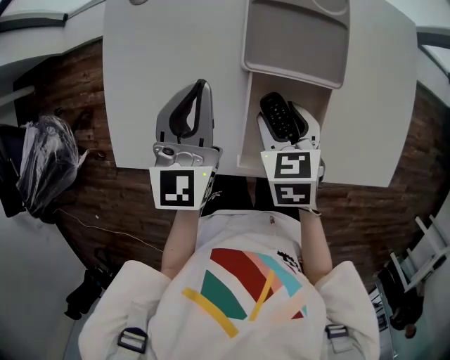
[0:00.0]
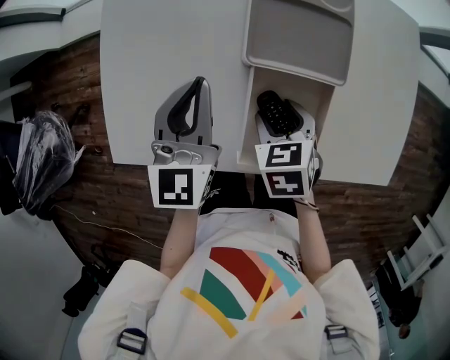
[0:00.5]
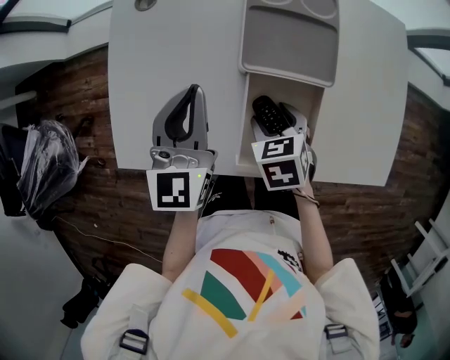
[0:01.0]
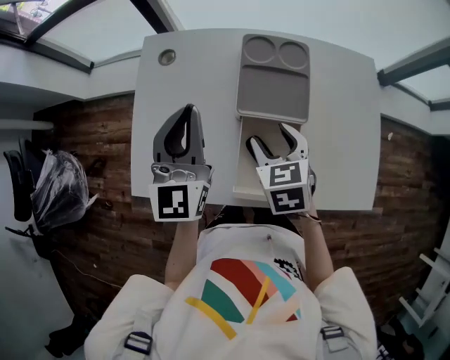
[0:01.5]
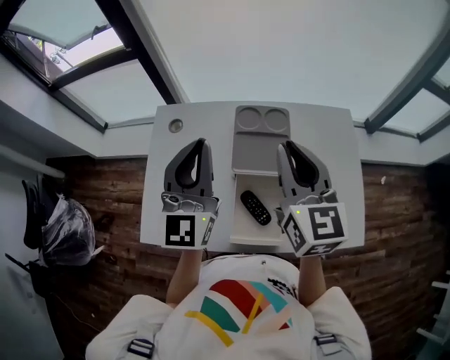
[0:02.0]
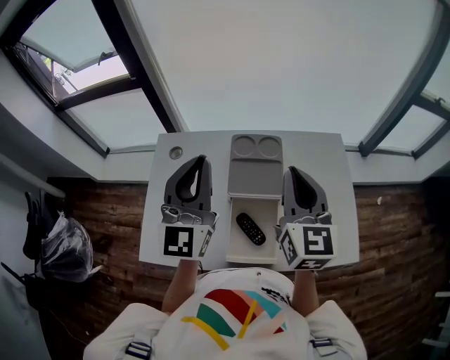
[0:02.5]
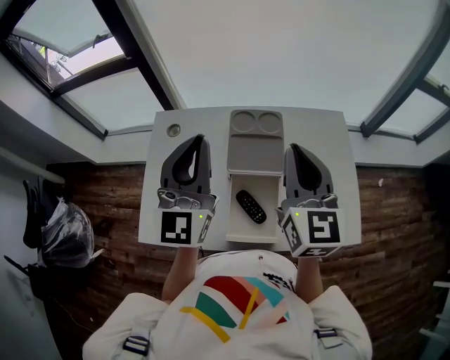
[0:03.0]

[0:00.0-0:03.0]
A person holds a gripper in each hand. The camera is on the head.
0:00.0 to 0:01.5: Both grippers travel together upward, about 10 cm.
0:01.5 to 0:03.0: The left gripper moves upward and to the right, roughly 15 cm. The right gripper heads upward, covering approximately 25 cm, tips its fingers upward by some 40 degrees, and closes up.

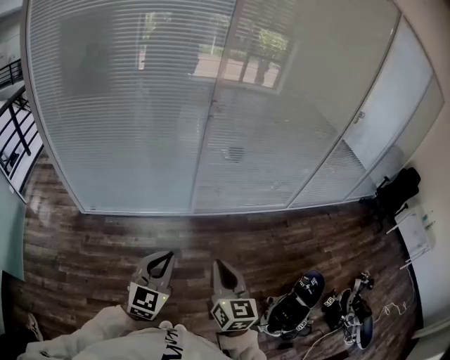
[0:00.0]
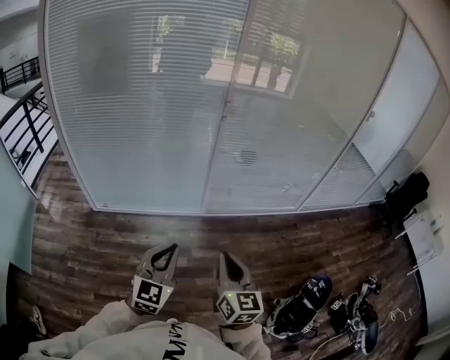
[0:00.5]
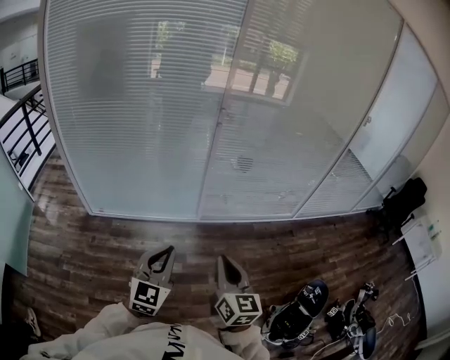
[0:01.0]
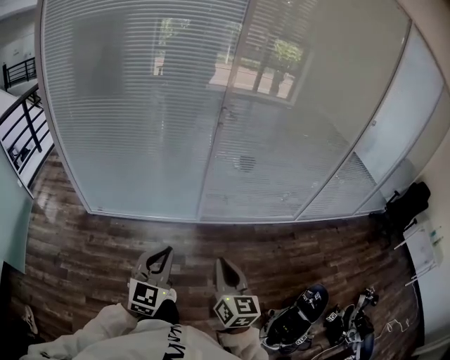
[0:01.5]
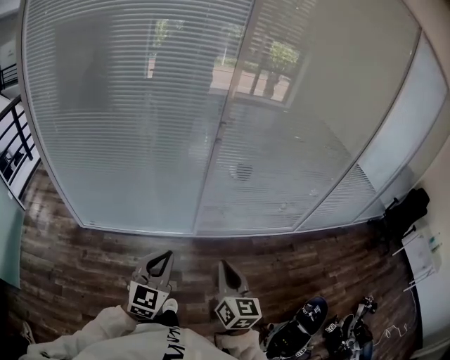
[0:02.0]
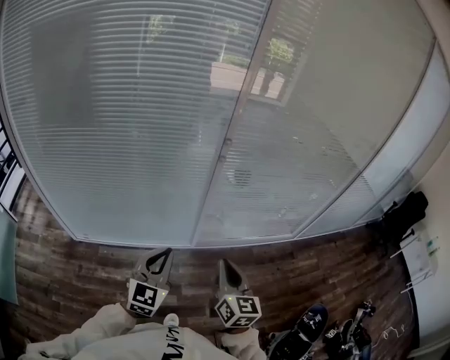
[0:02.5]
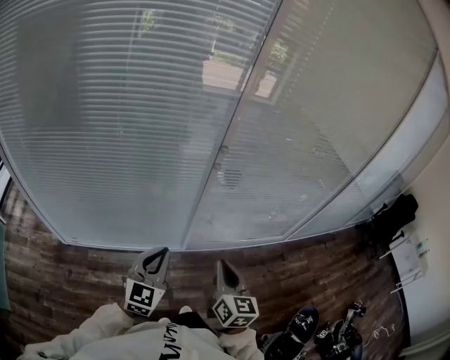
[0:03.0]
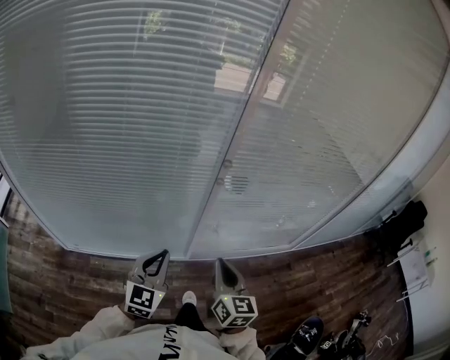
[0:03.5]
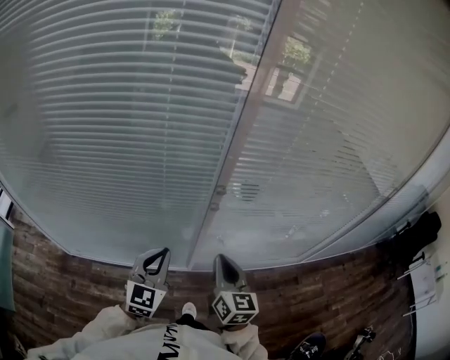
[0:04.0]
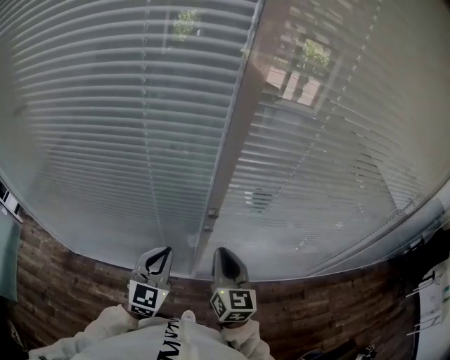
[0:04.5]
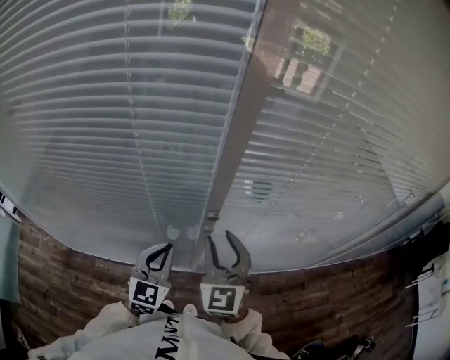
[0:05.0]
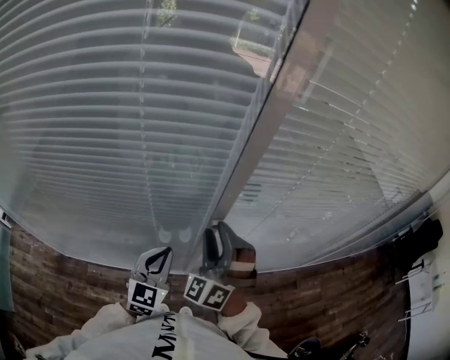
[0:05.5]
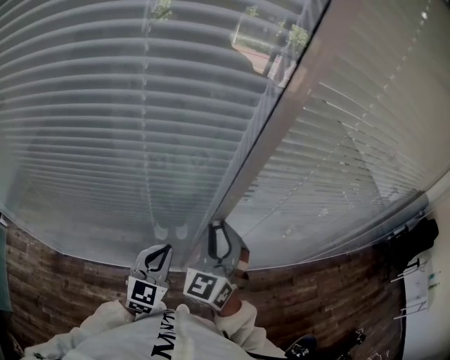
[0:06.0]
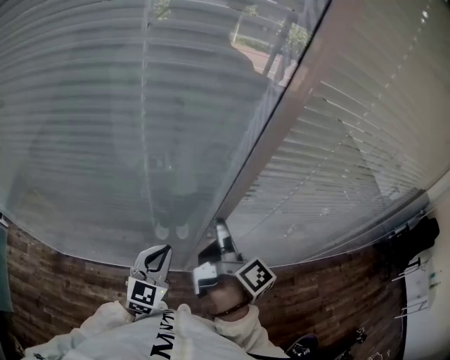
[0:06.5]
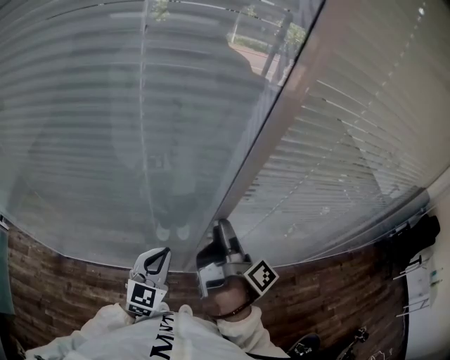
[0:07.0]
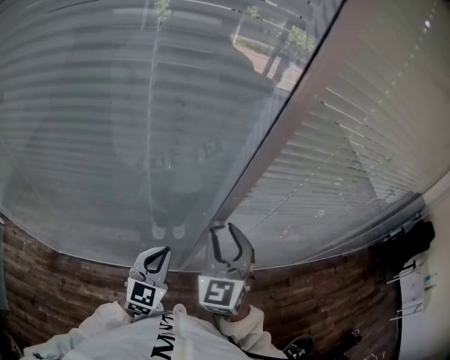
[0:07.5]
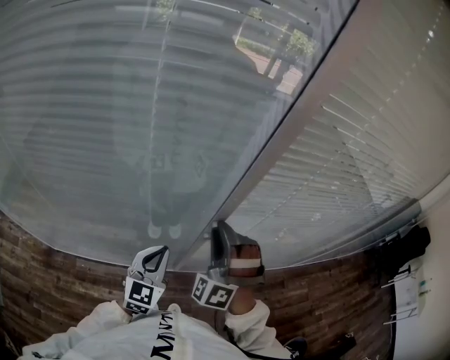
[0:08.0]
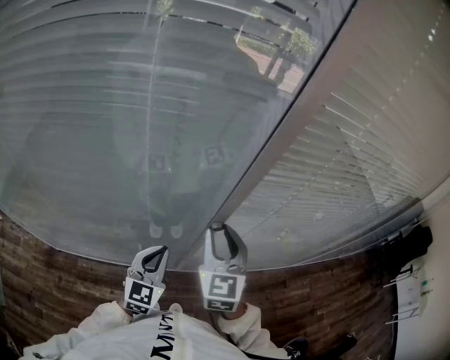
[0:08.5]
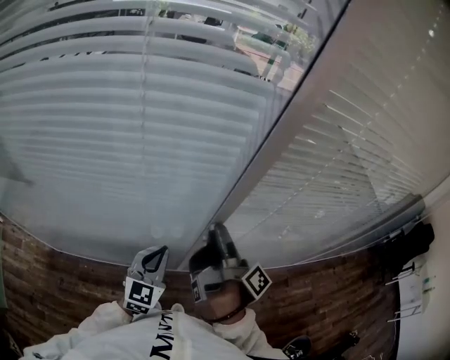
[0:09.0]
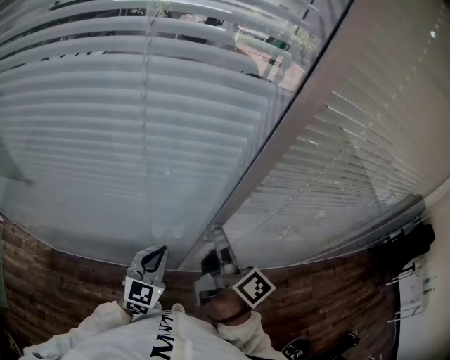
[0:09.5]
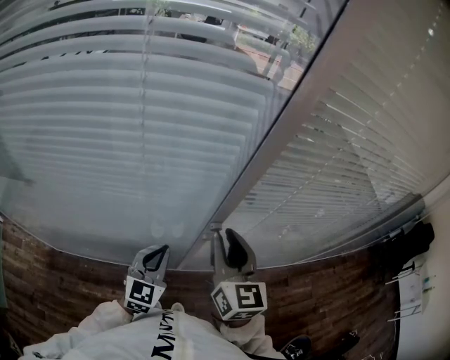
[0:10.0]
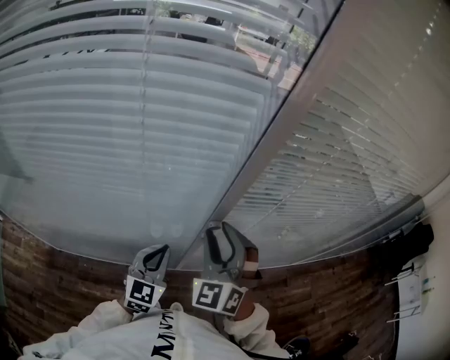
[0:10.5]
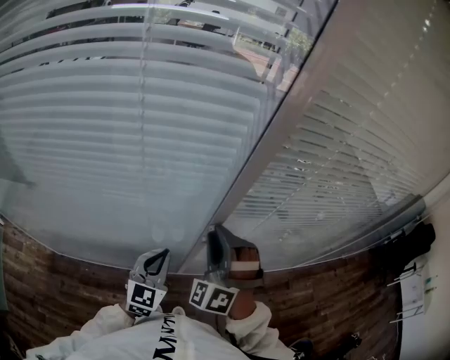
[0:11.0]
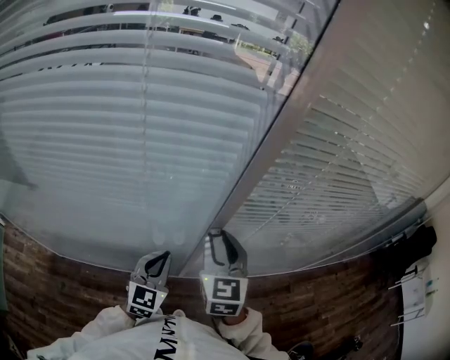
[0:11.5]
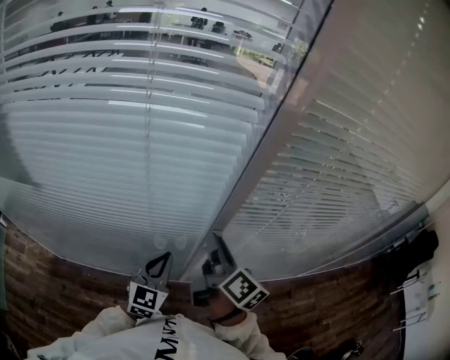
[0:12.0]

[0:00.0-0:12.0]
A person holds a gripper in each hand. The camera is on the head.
0:00.0 to 0:02.0: Both grippers travel together forward, some 15 cm.
0:02.0 to 0:04.0: The two grippers go about 35 cm forward.
0:04.0 to 0:06.0: The right gripper moves forward and upward, some 15 cm, twists some 50 degrees counterclockwise, seen from behind, and opens. The left gripper travels forward by about 10 cm.
0:06.0 to 0:08.0: The right gripper rotates around the line of its fingers by roughly 40 degrees, counterclockwise from behind.
0:08.0 to 0:10.0: The right gripper twists some 80 degrees clockwise, seen from behind.
0:10.0 to 0:12.0: The right gripper twists roughly 50 degrees clockwise, seen from behind.

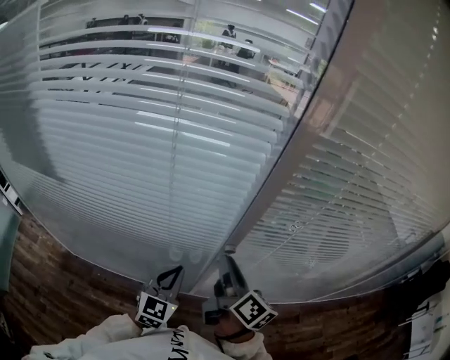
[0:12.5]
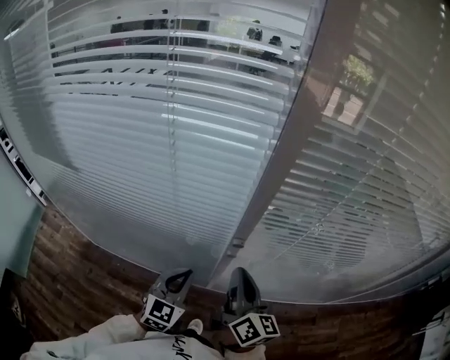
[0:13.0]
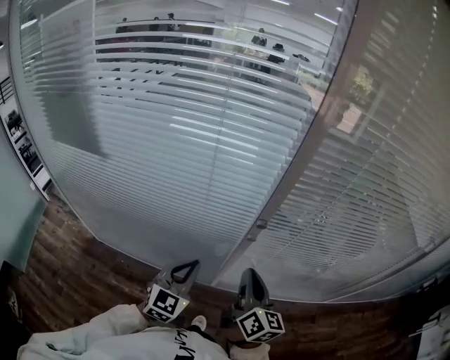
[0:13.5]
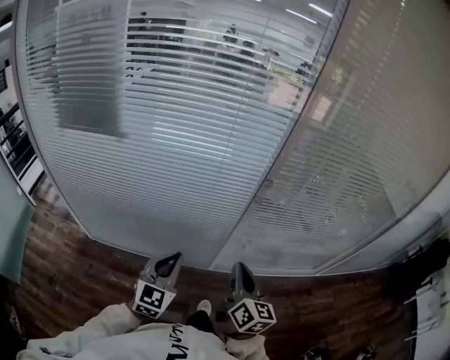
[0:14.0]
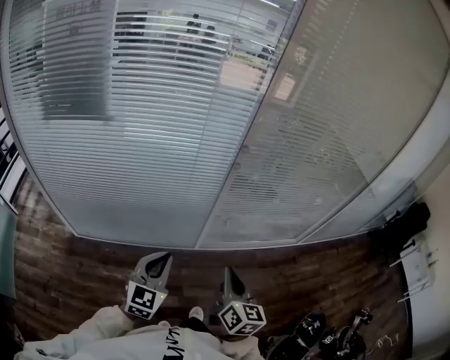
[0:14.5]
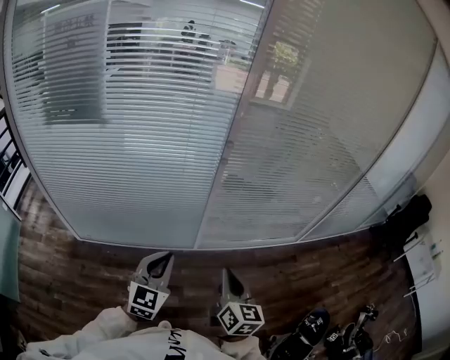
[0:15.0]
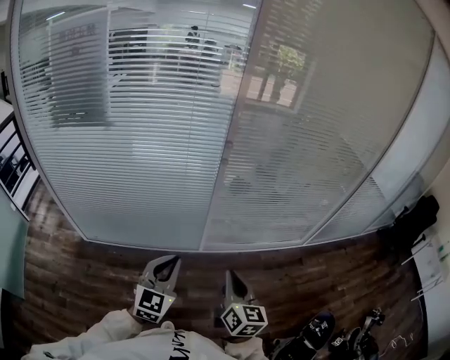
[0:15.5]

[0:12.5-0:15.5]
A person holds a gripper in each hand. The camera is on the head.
0:12.5 to 0:14.0: The right gripper is displaced backward by about 20 cm, turns by roughly 30 degrees, and closes. Meanwhile the left gripper travels backward and to the left by about 20 cm.
0:14.0 to 0:15.5: The left gripper heads backward and to the right, covering roughly 15 cm. Meanwhile the right gripper shifts approximately 15 cm backward.

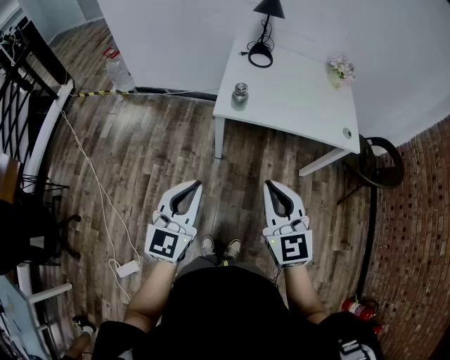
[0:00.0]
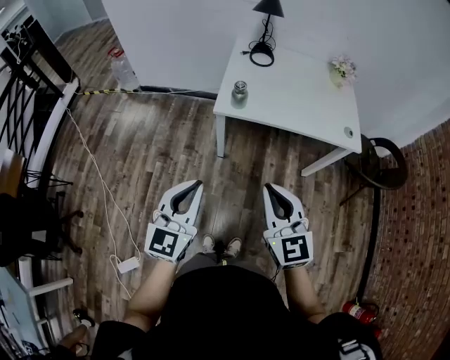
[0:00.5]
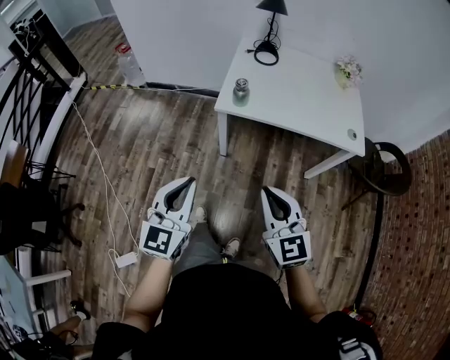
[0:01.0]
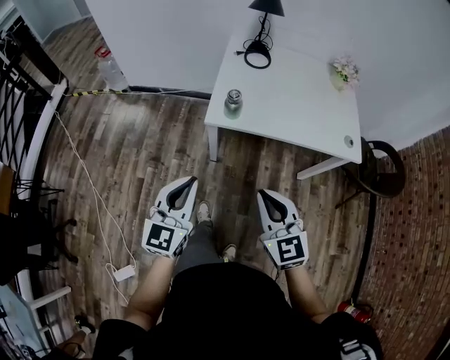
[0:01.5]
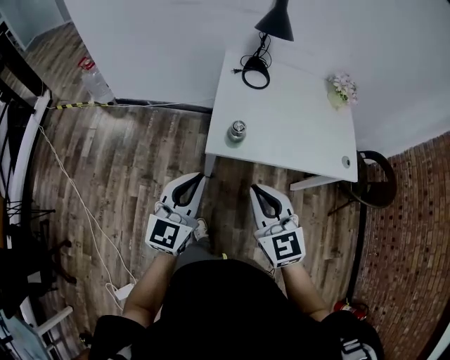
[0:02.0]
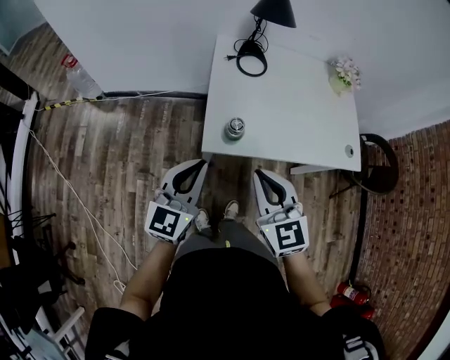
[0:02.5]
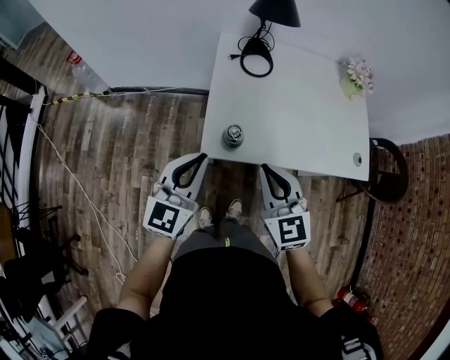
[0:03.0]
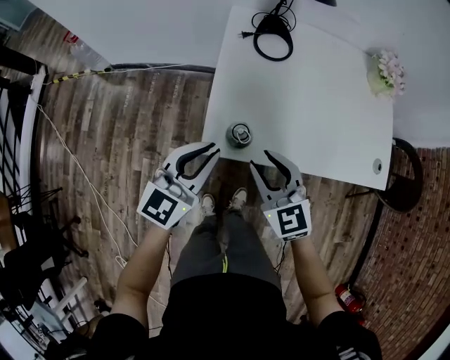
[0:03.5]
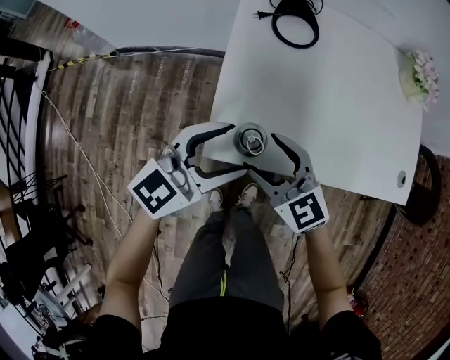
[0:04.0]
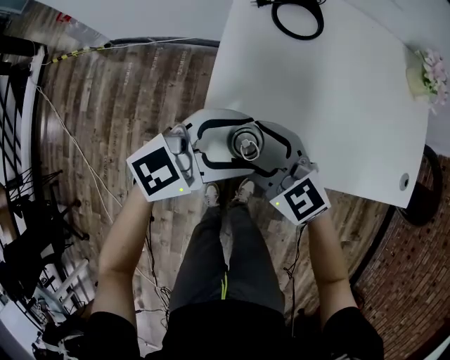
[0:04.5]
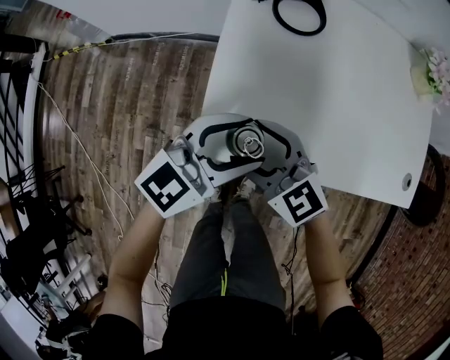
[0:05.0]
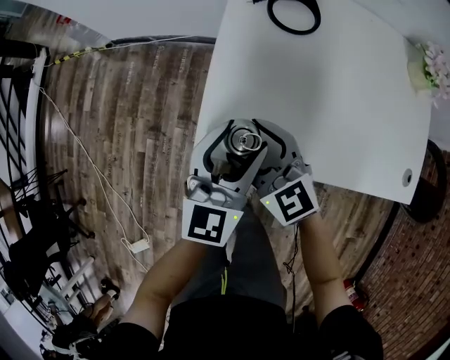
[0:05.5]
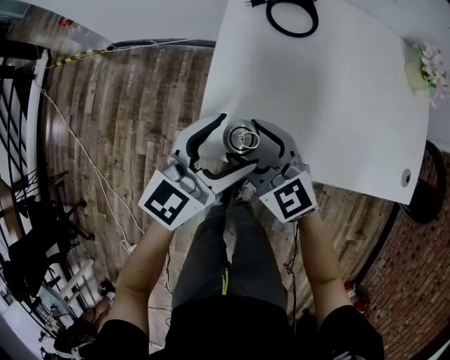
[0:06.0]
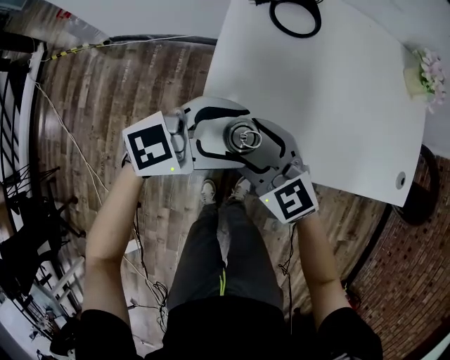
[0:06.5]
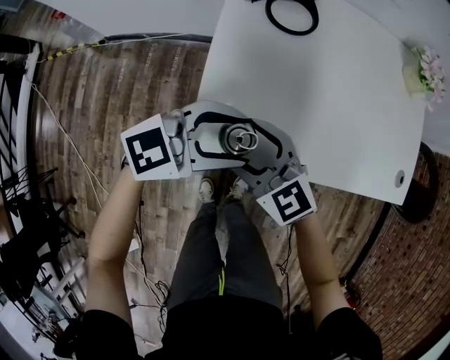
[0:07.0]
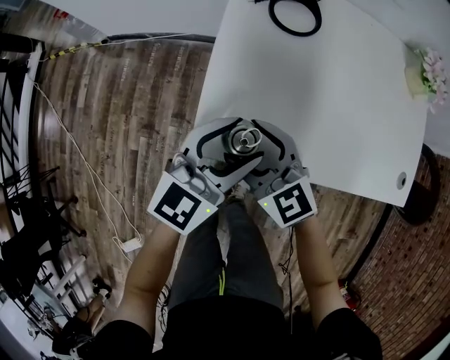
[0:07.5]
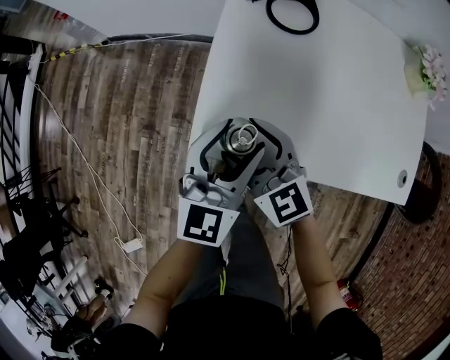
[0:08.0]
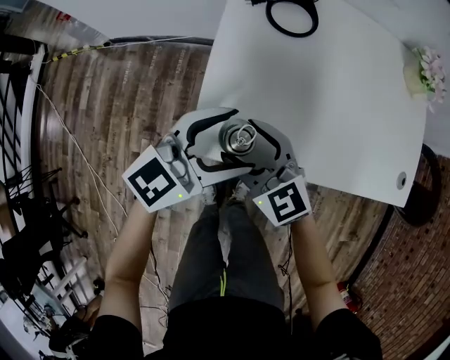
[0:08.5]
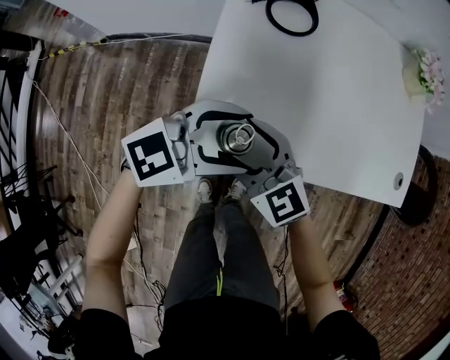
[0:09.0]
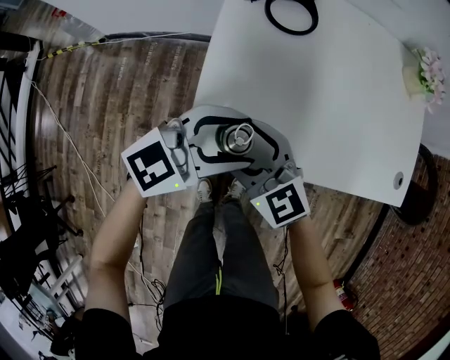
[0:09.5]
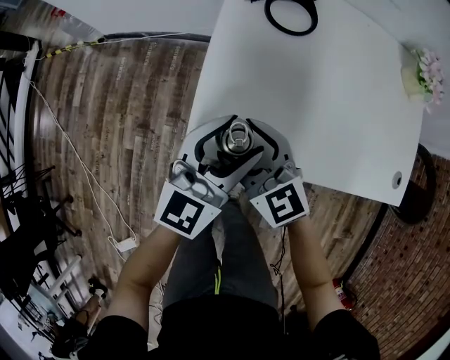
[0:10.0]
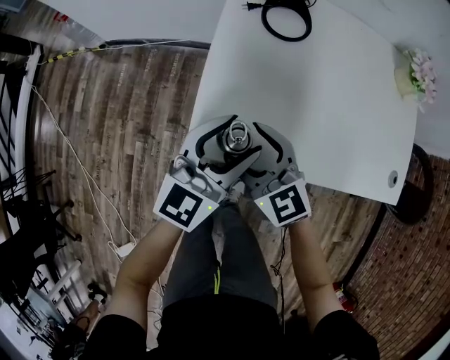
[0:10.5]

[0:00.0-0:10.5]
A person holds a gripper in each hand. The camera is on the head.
0:00.0 to 0:02.0: Both grippers move forward, some 20 cm.
0:02.0 to 0:04.0: The right gripper is displaced forward and downward by roughly 30 cm, rotates roughly 20 degrees, and opens. Meanwhile the left gripper shifts about 25 cm forward, downward and to the right, swivels some 30 degrees, and opens up.
0:04.0 to 0:06.5: The left gripper changes its angle by about 20 degrees.
0:08.5 to 0:10.5: The left gripper rotates some 20 degrees.
